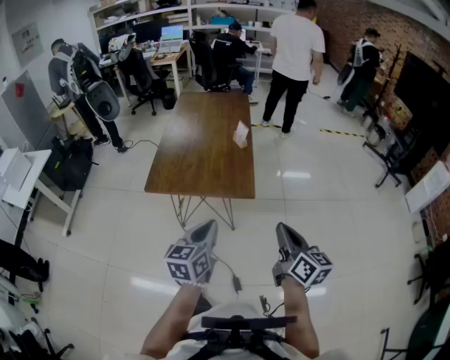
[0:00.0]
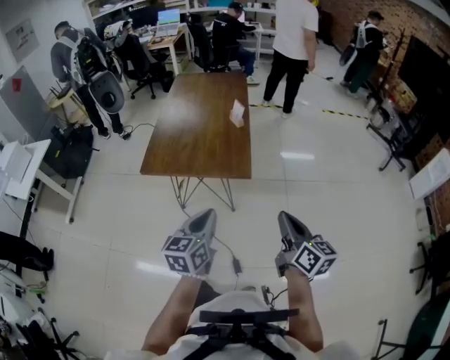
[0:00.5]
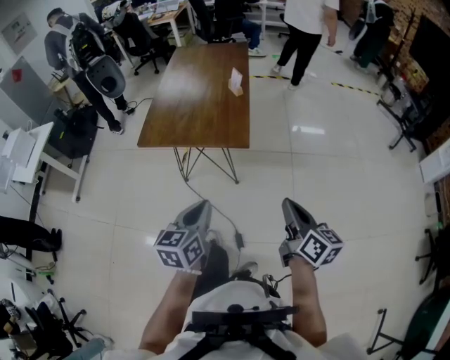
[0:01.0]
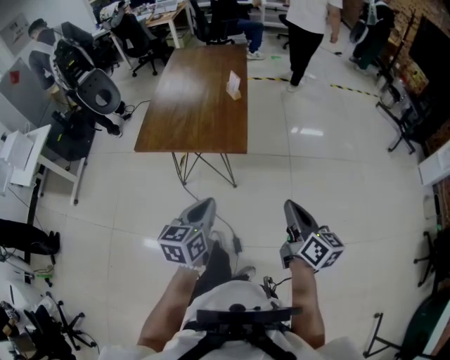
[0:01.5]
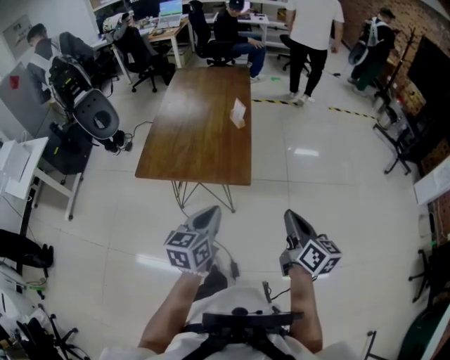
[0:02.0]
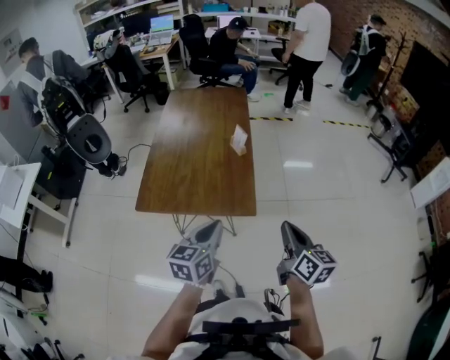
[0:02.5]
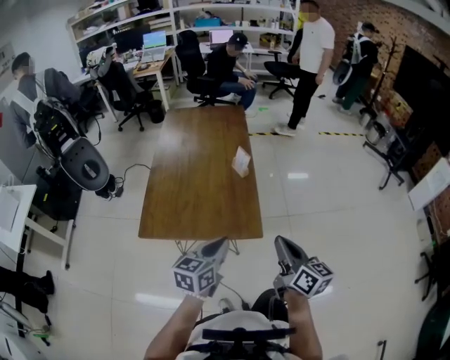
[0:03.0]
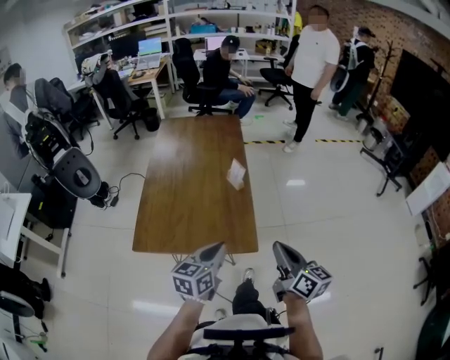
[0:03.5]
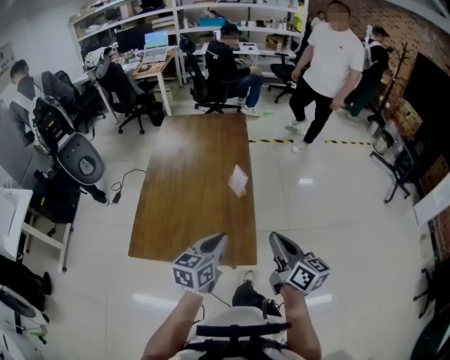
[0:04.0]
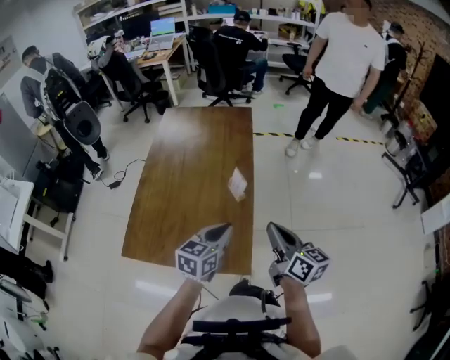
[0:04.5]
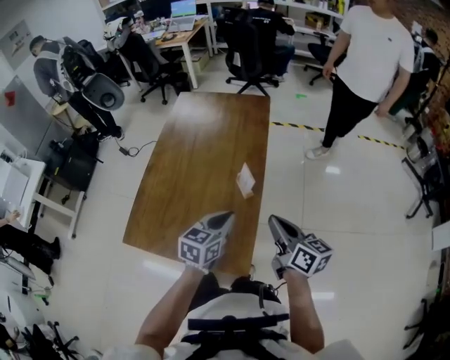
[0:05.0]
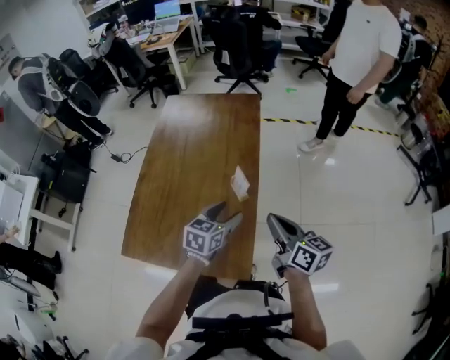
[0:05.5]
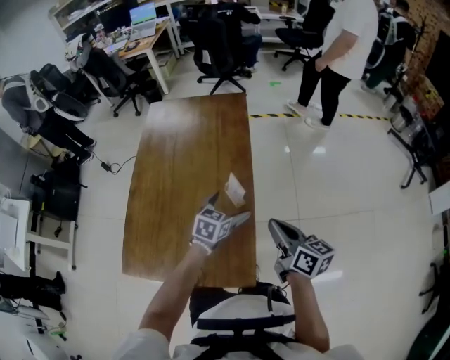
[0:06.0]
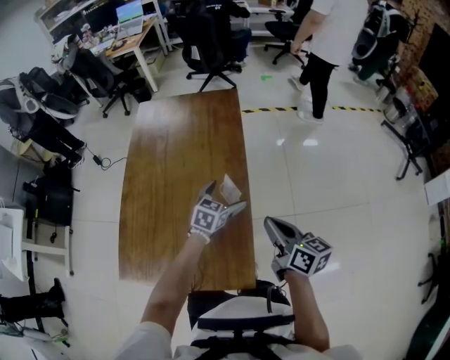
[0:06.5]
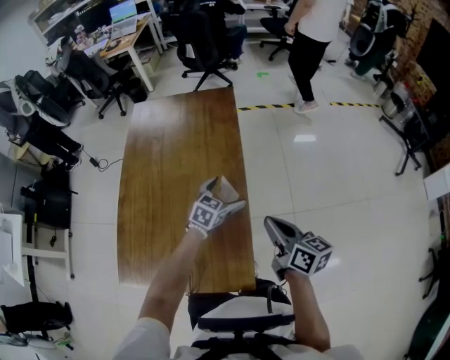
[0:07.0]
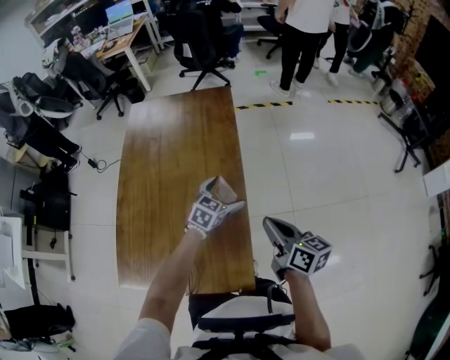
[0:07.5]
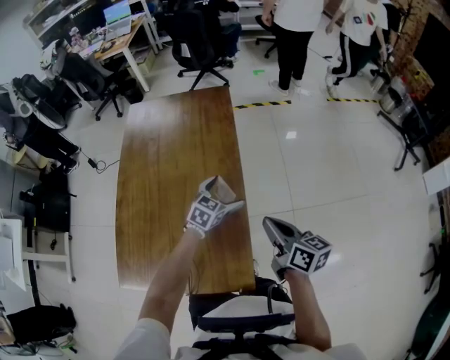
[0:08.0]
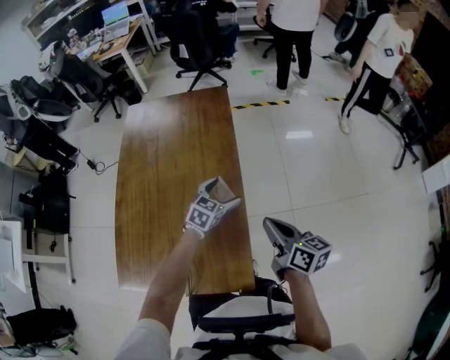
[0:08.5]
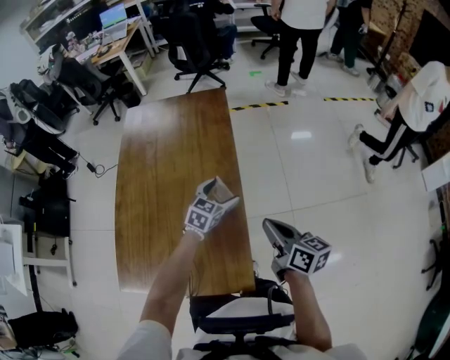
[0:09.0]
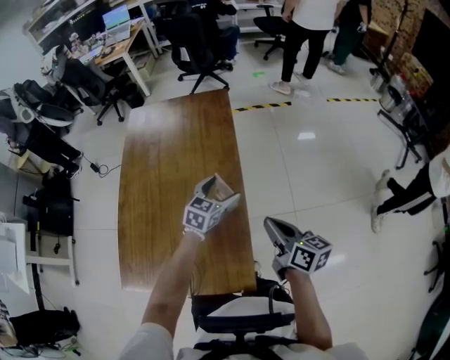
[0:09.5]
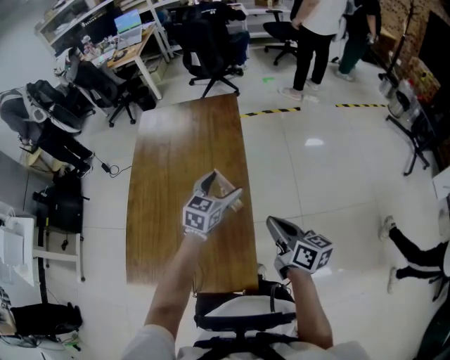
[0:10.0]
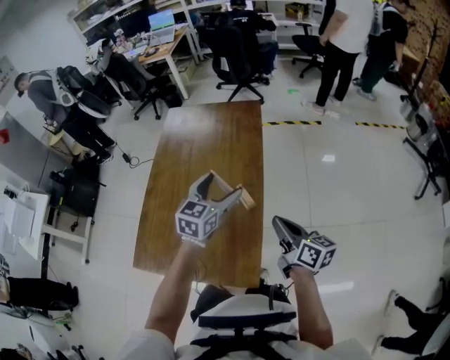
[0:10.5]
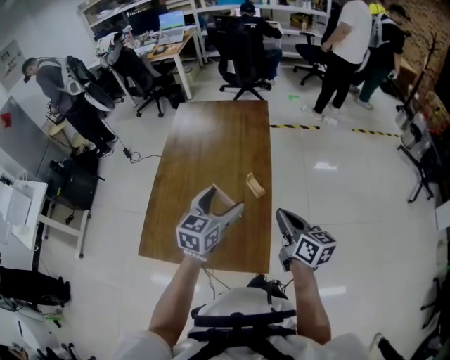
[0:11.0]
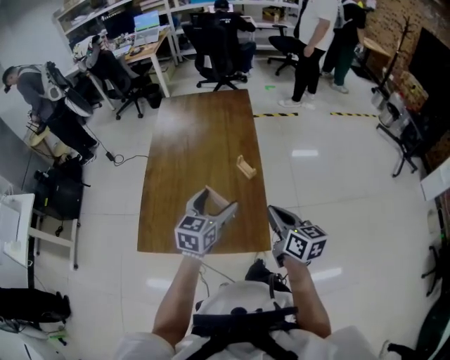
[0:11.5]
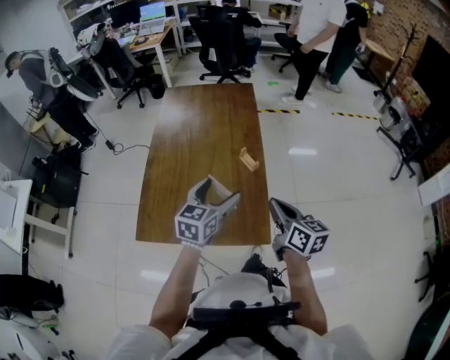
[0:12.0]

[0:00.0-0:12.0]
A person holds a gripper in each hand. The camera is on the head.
0:00.0 to 0:02.0: The grippers both shift to the right and forward by some 10 cm.
0:02.0 to 0:04.0: The right gripper moves forward and to the left, some 25 cm. The left gripper is displaced forward by approximately 25 cm.
0:04.0 to 0:06.0: The left gripper travels forward and downward by approximately 30 cm, swivels about 20 degrees, and opens its fingers; the right gripper goes about 20 cm forward and downward.
0:06.0 to 0:08.0: The left gripper travels forward by some 5 cm.
0:08.0 to 0:10.0: The left gripper heads upward, covering roughly 10 cm.
0:10.0 to 0:12.0: The right gripper travels backward and to the left by some 15 cm. Meanwhile the left gripper goes about 25 cm backward and to the left.

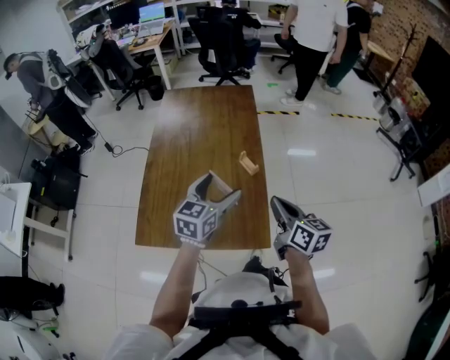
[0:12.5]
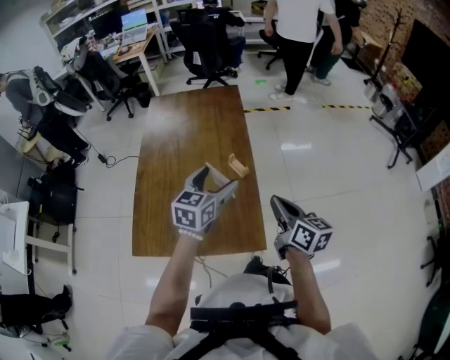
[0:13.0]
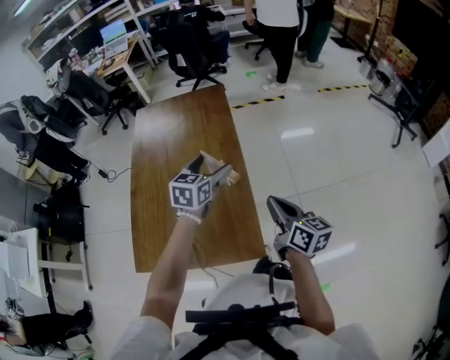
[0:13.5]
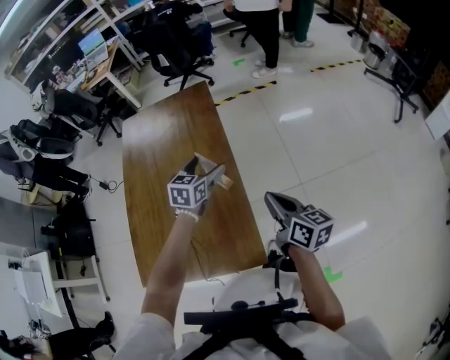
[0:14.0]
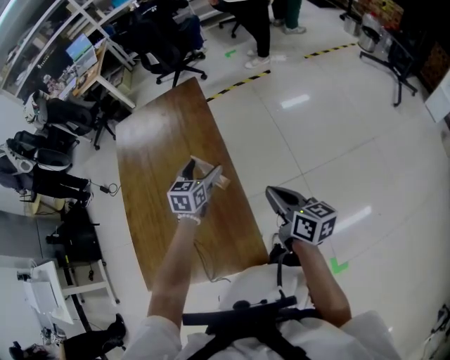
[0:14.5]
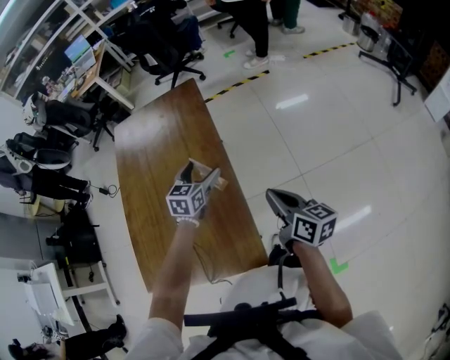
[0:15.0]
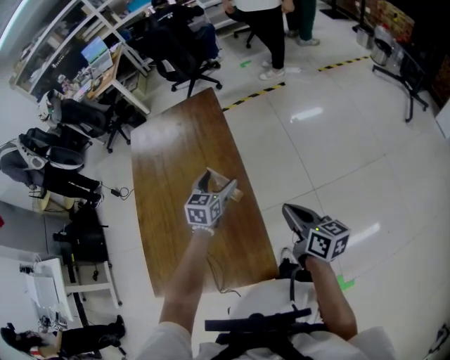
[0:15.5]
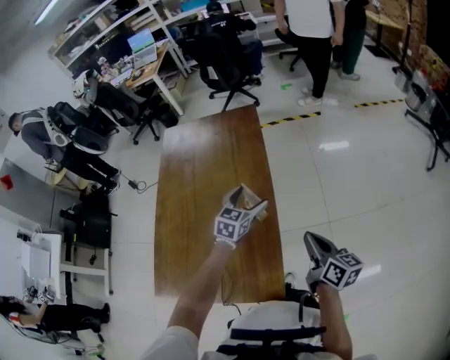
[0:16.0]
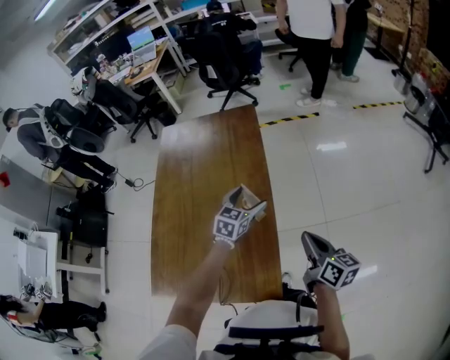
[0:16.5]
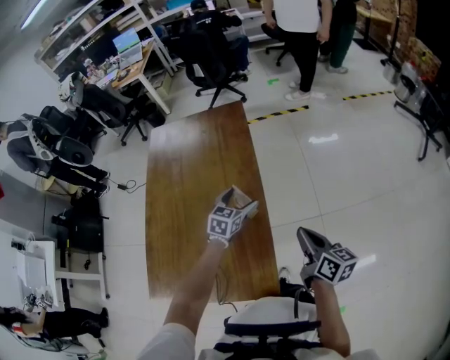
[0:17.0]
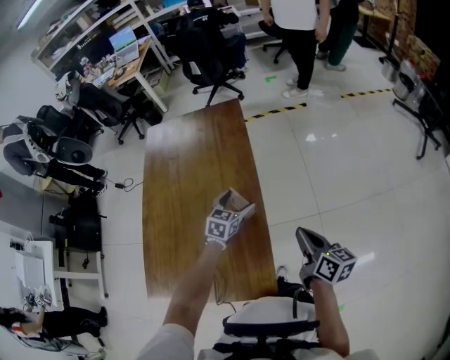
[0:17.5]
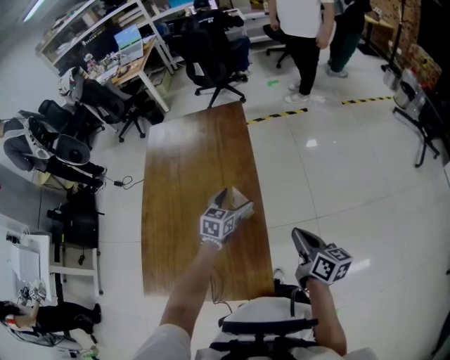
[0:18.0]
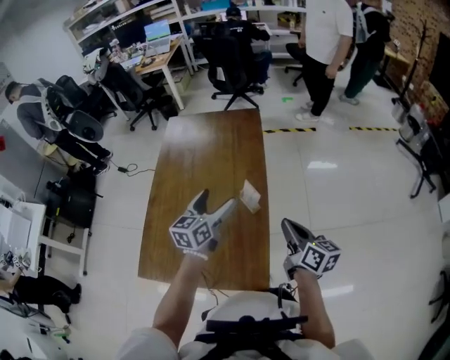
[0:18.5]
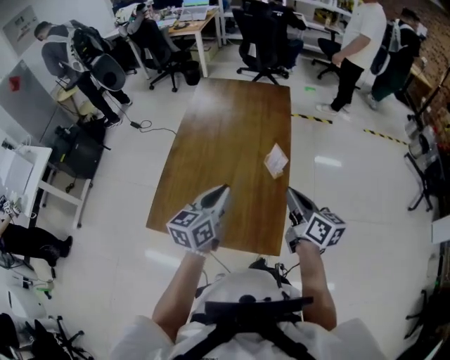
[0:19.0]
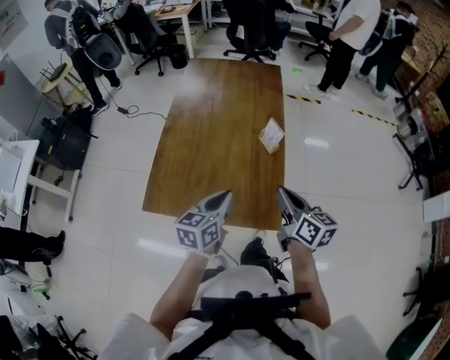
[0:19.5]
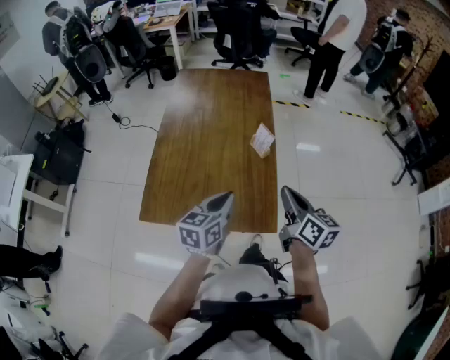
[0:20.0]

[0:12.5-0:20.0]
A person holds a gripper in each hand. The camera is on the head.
0:12.5 to 0:14.5: The right gripper heads to the right, forward and downward, covering about 15 cm; the left gripper shifts roughly 25 cm forward, downward and to the right.
0:14.5 to 0:16.5: There are only small adjustments of the grippers.
0:16.5 to 0:18.0: The grippers stay close to where they were, moving slightly.
0:18.0 to 0:20.0: The right gripper is displaced to the left, backward and upward by some 20 cm, while the left gripper heads backward, to the left and upward, covering some 35 cm, swivels some 20 degrees, and closes up.

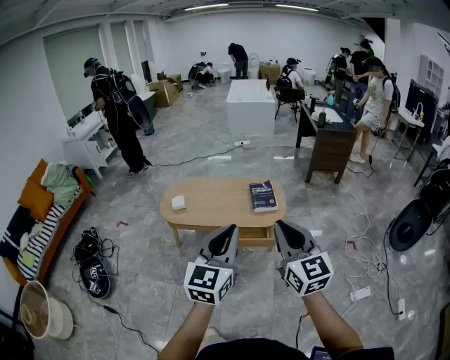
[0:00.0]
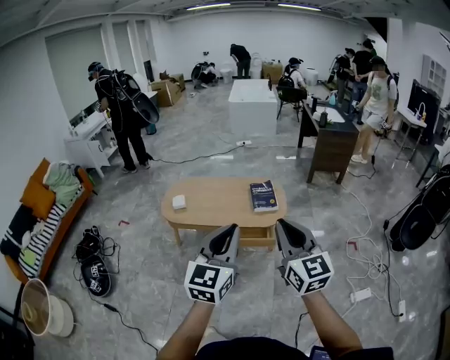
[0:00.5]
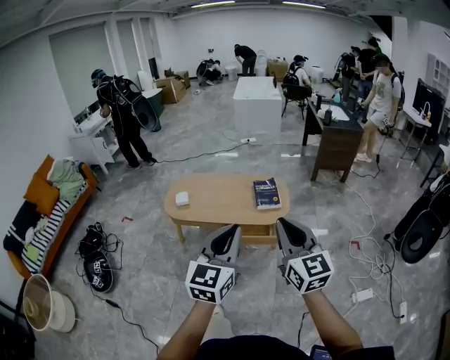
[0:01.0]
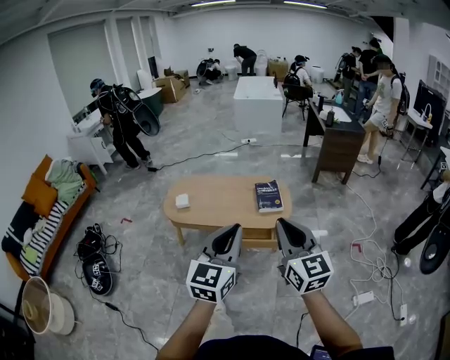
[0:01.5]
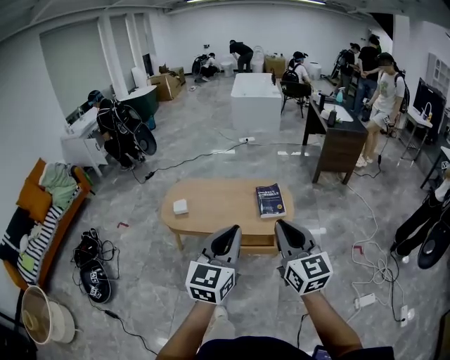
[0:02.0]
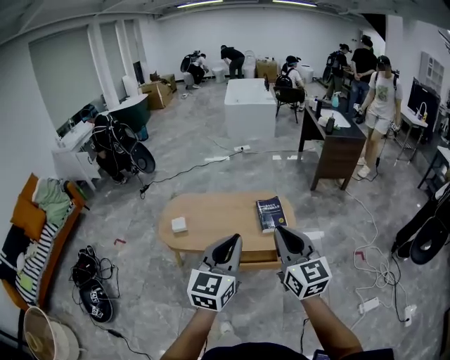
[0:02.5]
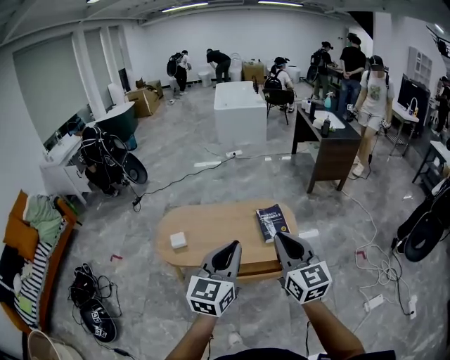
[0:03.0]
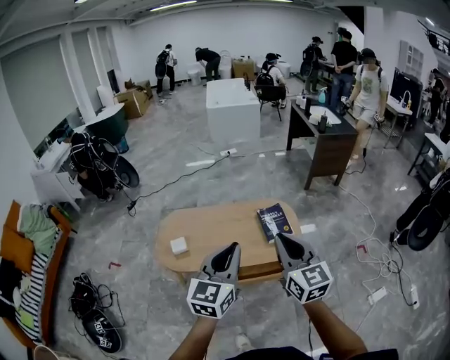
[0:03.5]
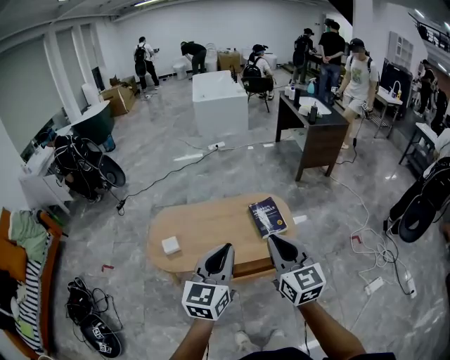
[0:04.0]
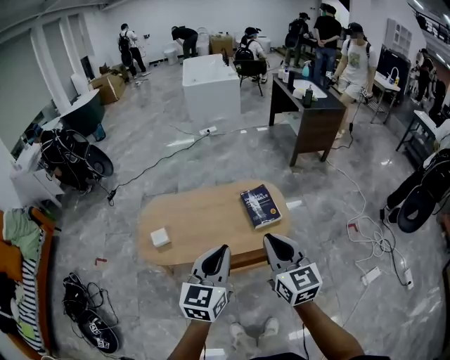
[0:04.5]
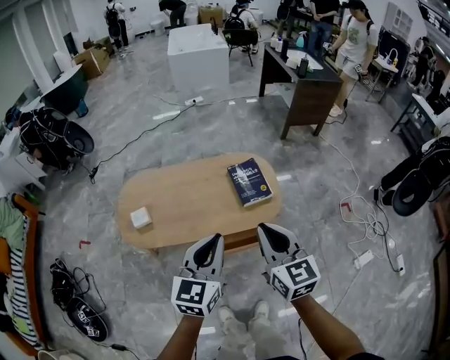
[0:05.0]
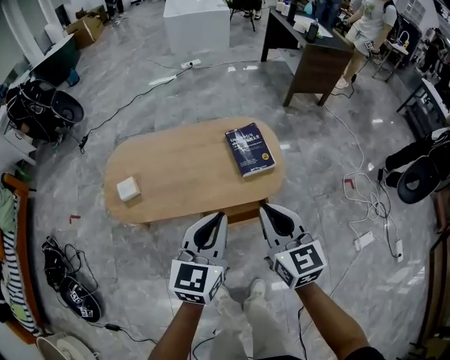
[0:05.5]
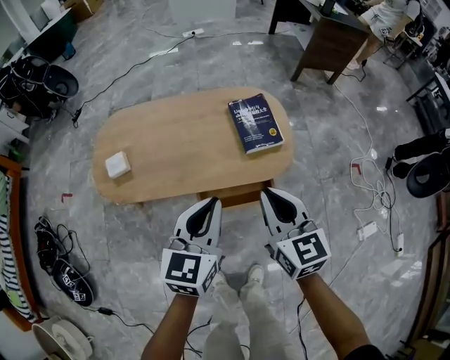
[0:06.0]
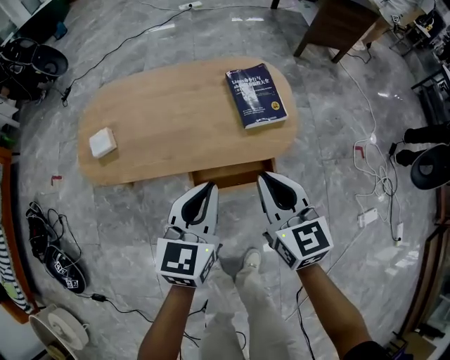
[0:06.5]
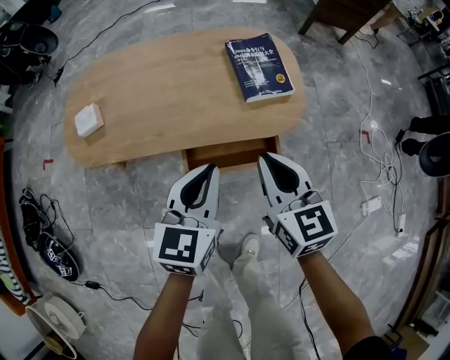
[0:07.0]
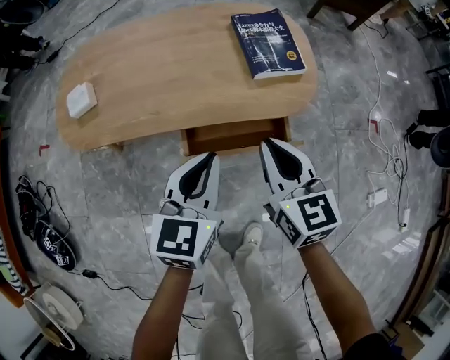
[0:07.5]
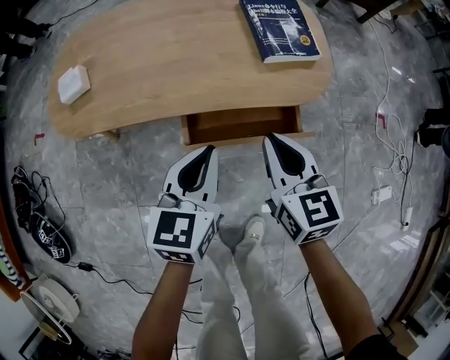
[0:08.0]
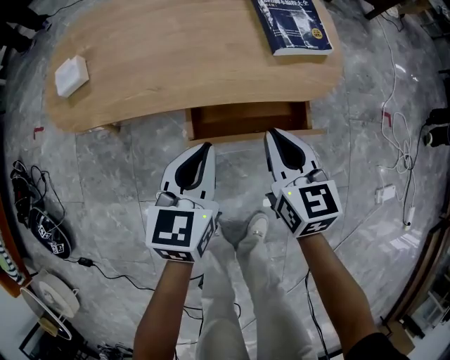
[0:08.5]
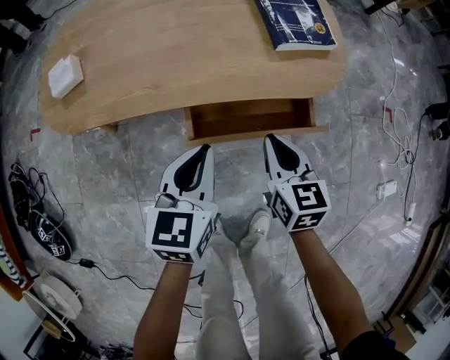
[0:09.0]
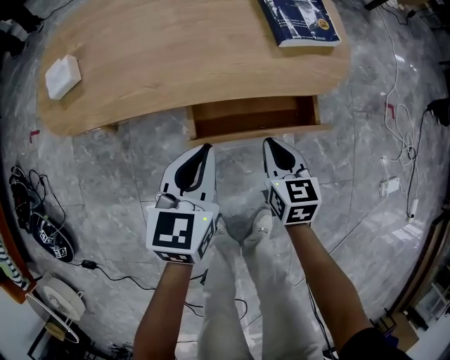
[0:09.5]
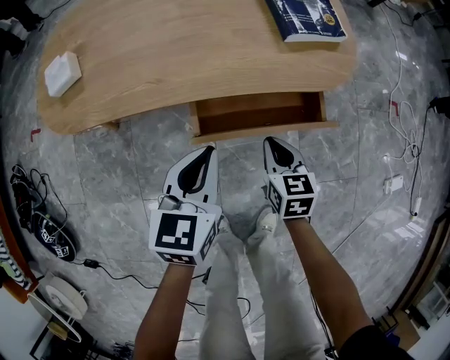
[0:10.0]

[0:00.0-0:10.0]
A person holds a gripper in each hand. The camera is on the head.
0:00.0 to 0:02.0: The two grippers go about 10 cm forward.
0:02.0 to 0:04.0: The two grippers go roughly 20 cm forward and to the left.
0:04.0 to 0:06.0: Both grippers move downward, roughly 25 cm.
0:06.0 to 0:08.0: Both grippers move downward, about 25 cm.
0:08.0 to 0:10.0: The left gripper travels downward by about 5 cm; the right gripper is displaced downward by approximately 20 cm.
